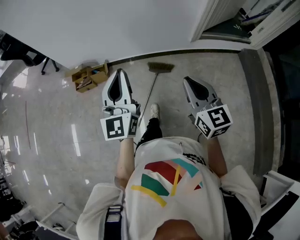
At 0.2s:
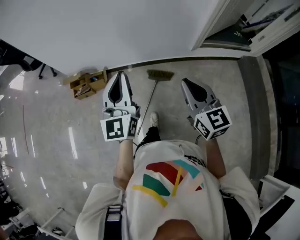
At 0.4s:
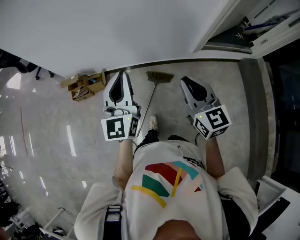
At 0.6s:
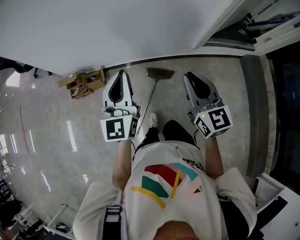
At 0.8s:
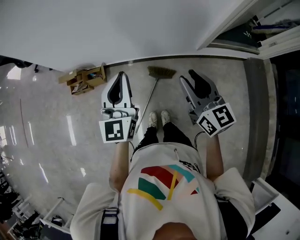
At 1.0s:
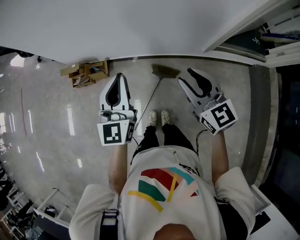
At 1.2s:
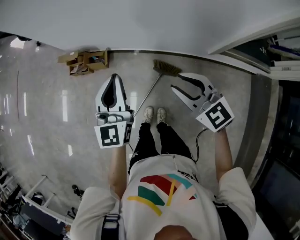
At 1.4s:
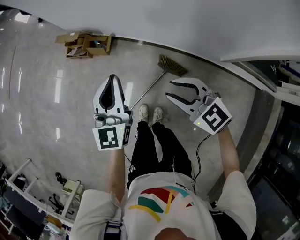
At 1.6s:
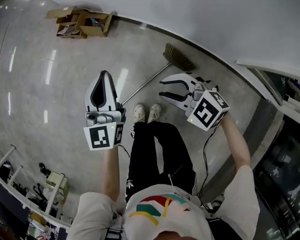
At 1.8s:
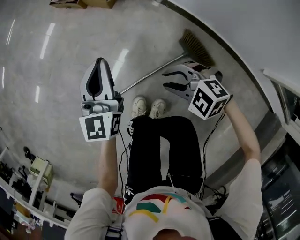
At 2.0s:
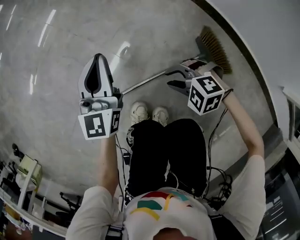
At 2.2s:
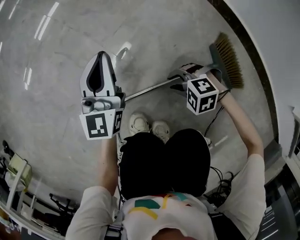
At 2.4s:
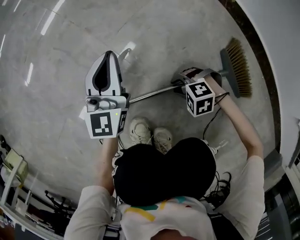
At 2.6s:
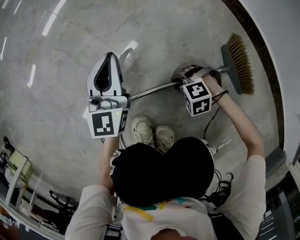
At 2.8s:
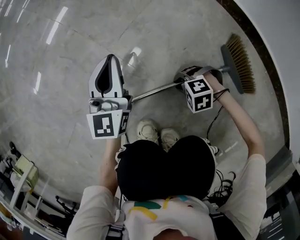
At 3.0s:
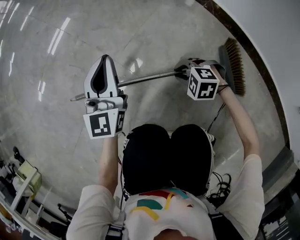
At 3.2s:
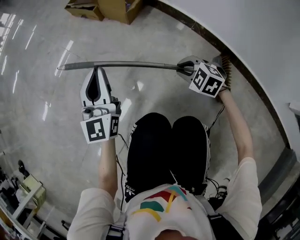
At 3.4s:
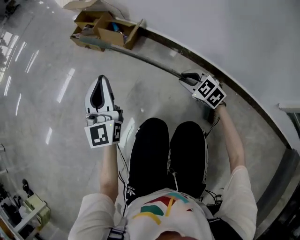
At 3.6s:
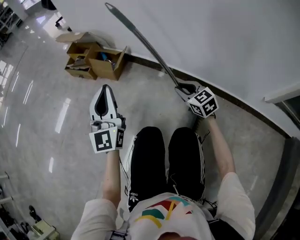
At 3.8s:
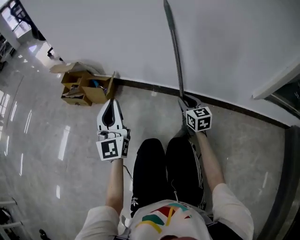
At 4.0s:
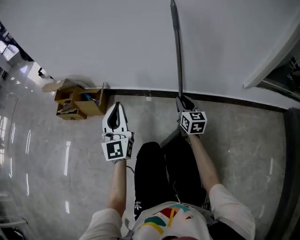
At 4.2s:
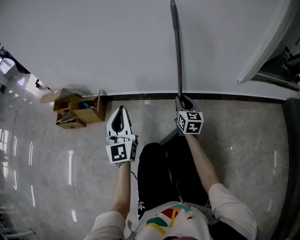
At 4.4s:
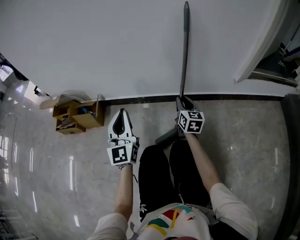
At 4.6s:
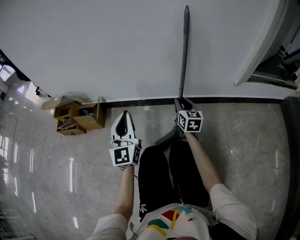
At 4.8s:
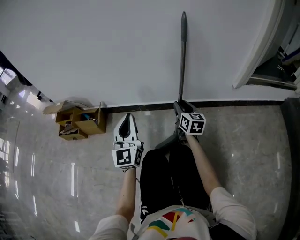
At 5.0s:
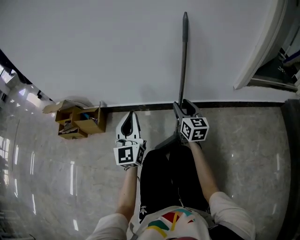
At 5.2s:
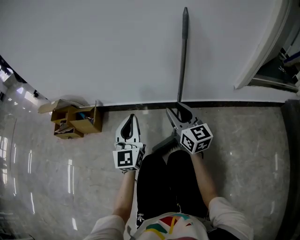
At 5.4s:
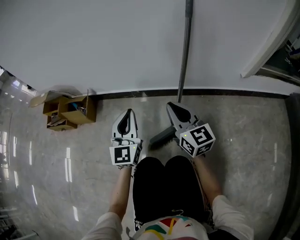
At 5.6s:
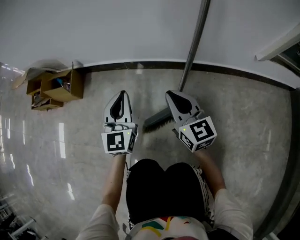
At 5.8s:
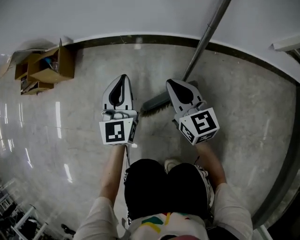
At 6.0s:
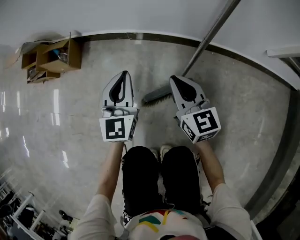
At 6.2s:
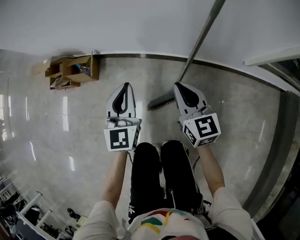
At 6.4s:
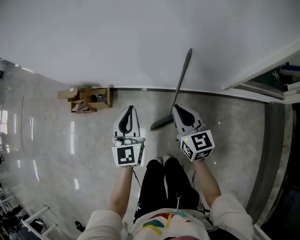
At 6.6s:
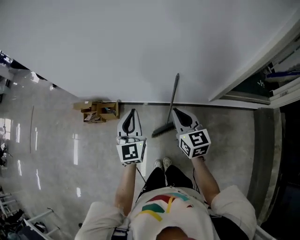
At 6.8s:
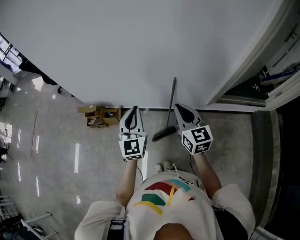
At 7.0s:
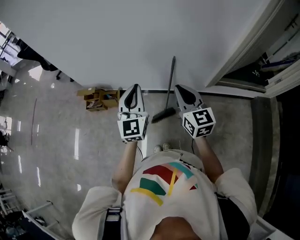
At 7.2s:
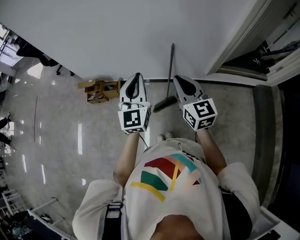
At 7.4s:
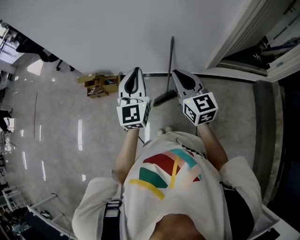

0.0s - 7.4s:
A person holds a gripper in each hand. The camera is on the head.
0.0s - 1.4s: The left gripper shifts by about 35 cm, and swivels approximately 30 degrees; the right gripper changes place by some 40 cm, turns by about 70 degrees, and opens up.
1.4s - 3.0s: The grippers both shift downward by roughly 80 cm. The right gripper angles its fingers downward, by some 30 degrees. Meanwhile the left gripper rotates approximately 20 degrees.
3.0s - 4.4s: The two grippers go some 30 cm upward. The right gripper tips its fingers upward by some 50 degrees, while the left gripper turns by approximately 40 degrees.
4.4s - 6.0s: The left gripper moves downward, some 15 cm. The right gripper moves up and down over about 25 cm, changing direction 2 times, and swivels approximately 30 degrees.
6.0s - 7.4s: Both grippers travel together upward, about 80 cm.

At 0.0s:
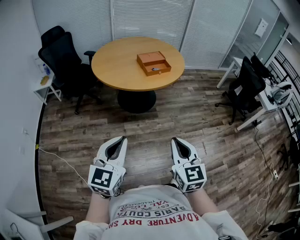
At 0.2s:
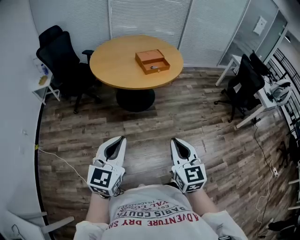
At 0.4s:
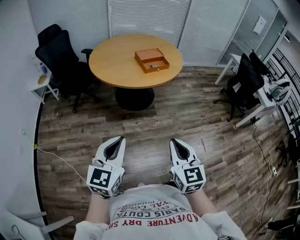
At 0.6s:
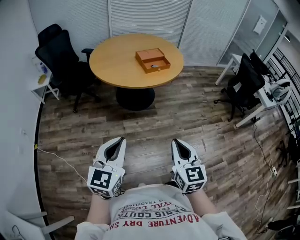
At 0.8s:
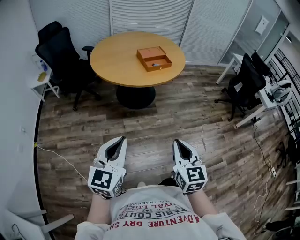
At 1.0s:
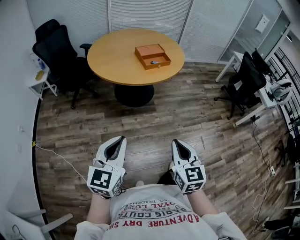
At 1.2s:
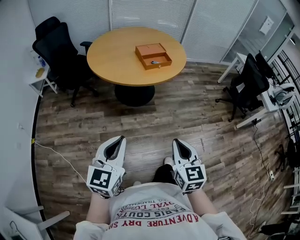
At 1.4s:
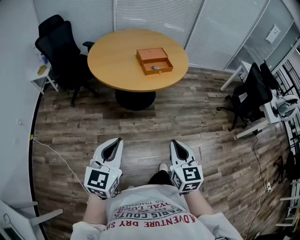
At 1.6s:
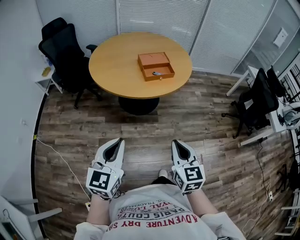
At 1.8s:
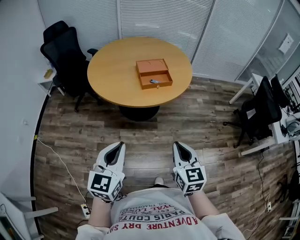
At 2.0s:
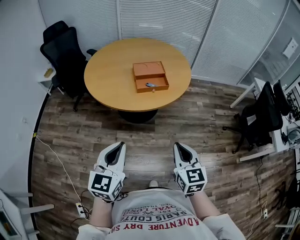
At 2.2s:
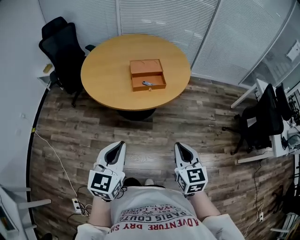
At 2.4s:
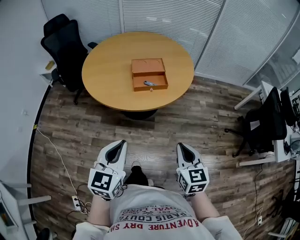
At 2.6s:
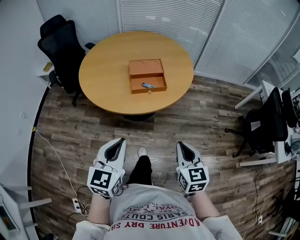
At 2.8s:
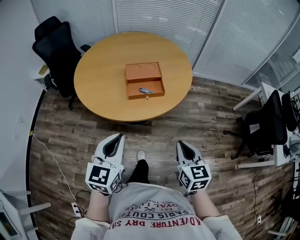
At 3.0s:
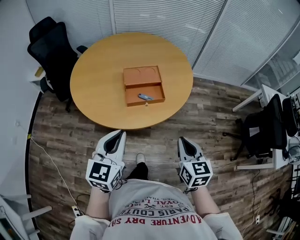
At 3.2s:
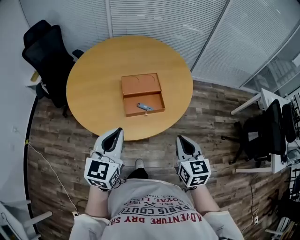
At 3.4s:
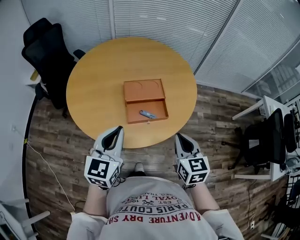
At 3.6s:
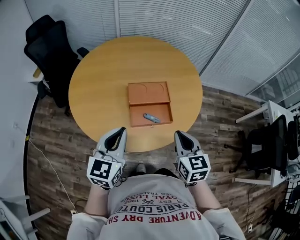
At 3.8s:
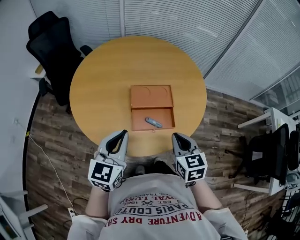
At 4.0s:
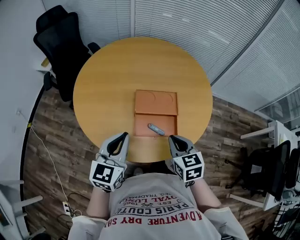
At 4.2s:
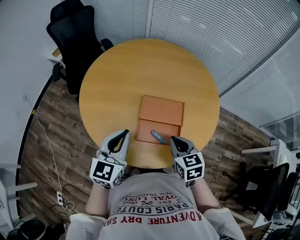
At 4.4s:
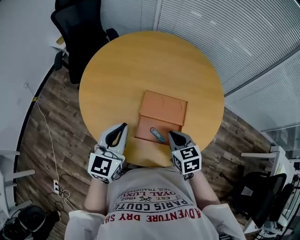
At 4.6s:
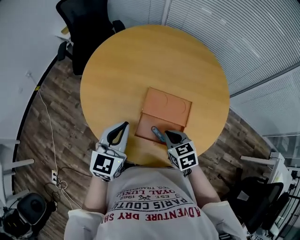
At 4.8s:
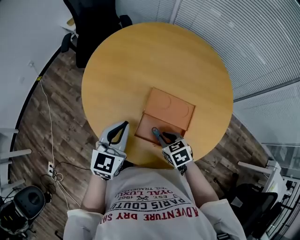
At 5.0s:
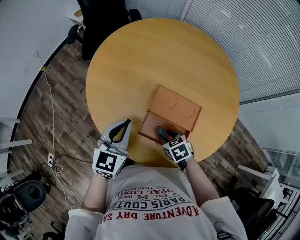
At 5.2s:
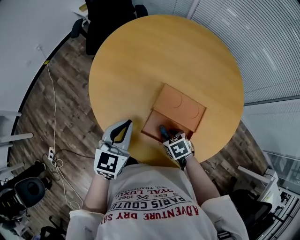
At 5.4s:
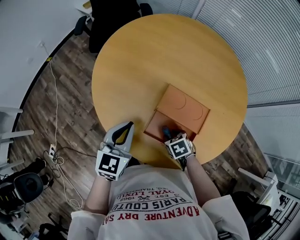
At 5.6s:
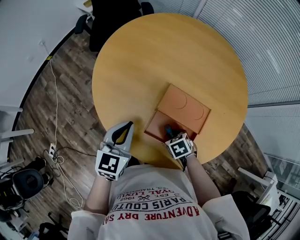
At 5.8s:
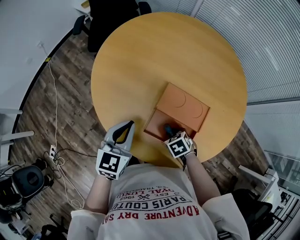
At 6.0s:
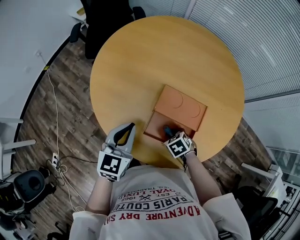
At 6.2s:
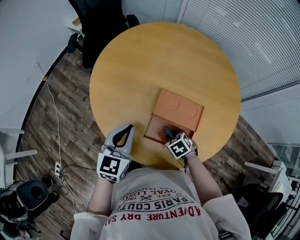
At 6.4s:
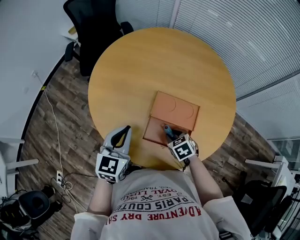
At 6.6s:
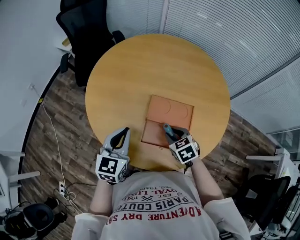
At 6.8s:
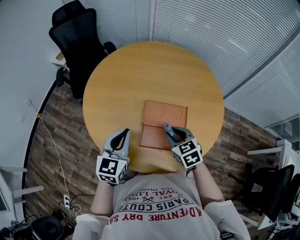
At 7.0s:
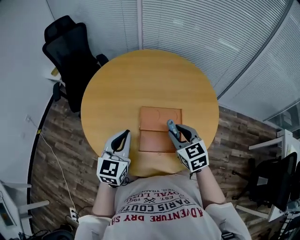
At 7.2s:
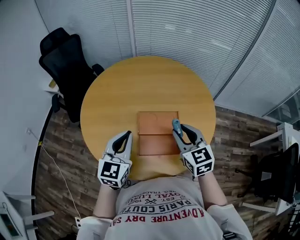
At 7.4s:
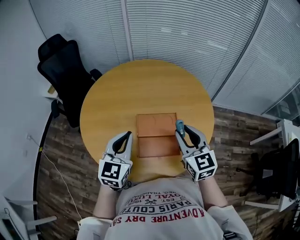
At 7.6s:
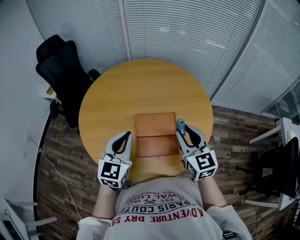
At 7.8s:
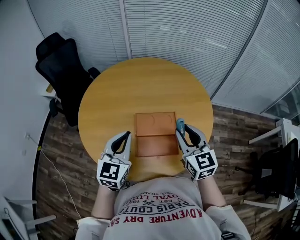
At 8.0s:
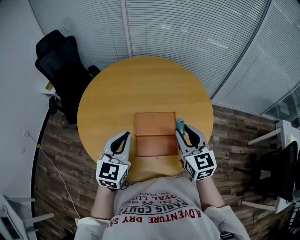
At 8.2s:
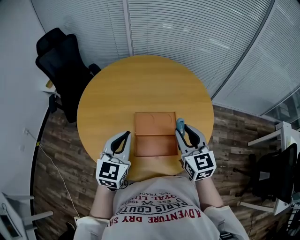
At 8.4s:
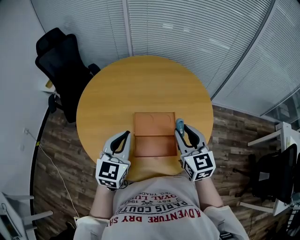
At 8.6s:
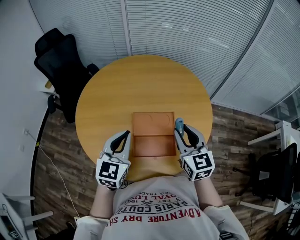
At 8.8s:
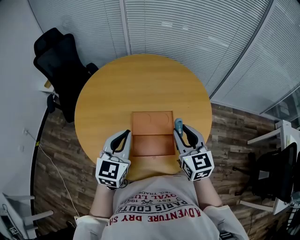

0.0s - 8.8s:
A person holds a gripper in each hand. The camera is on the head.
0.0s - 1.4s: The grippers both shift forward by approximately 10 cm.
1.4s - 3.0s: The two grippers go about 40 cm forward and to the right.
3.0s - 4.4s: The left gripper shifts by approximately 25 cm; the right gripper shifts by about 35 cm, and swivels roughly 40 degrees.
4.4s - 5.8s: The right gripper goes roughly 15 cm downward, angles its fingers downward, by some 30 degrees, and opens. Meanwhile the left gripper travels downward by some 5 cm.
5.8s - 7.4s: The right gripper shifts roughly 30 cm upward, and tilts its fingers some 60 degrees upward. The left gripper is displaced upward by approximately 10 cm, and rotates some 30 degrees.
7.4s - 8.8s: The grippers stay close to where they were, moving slightly.

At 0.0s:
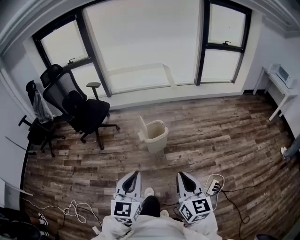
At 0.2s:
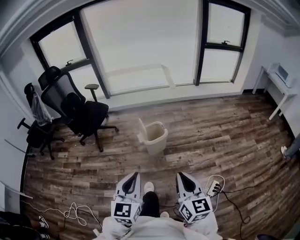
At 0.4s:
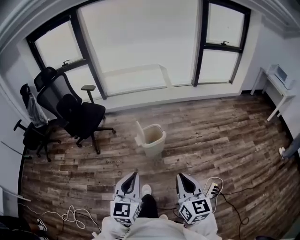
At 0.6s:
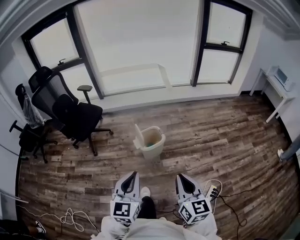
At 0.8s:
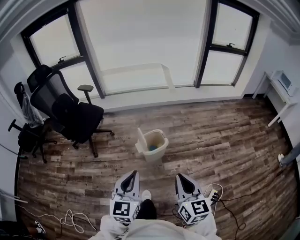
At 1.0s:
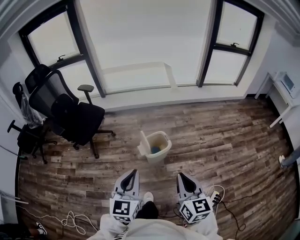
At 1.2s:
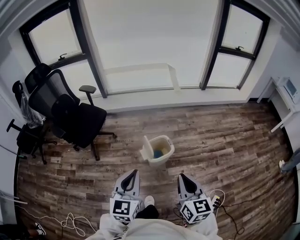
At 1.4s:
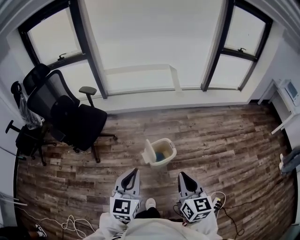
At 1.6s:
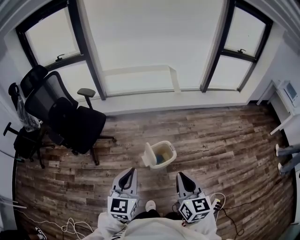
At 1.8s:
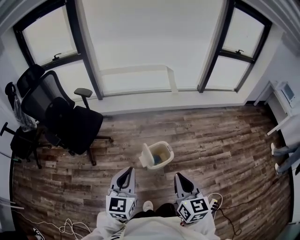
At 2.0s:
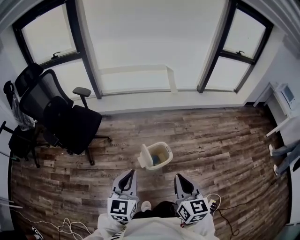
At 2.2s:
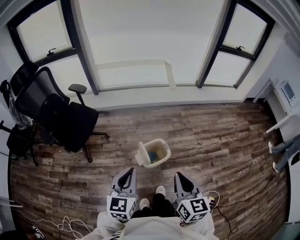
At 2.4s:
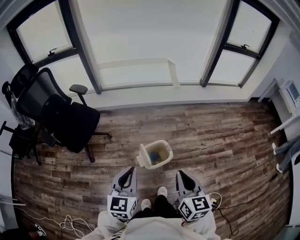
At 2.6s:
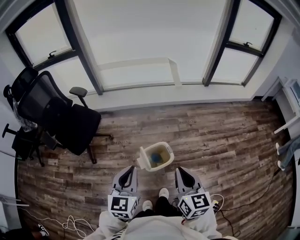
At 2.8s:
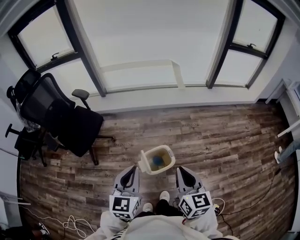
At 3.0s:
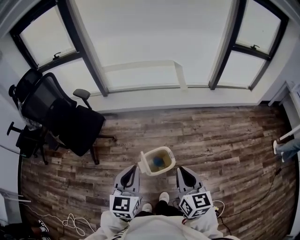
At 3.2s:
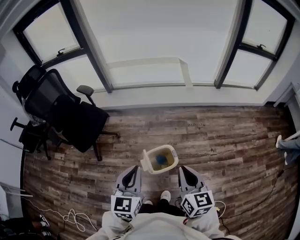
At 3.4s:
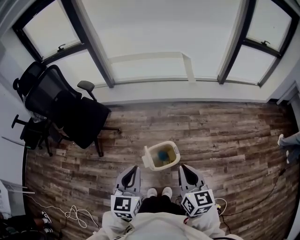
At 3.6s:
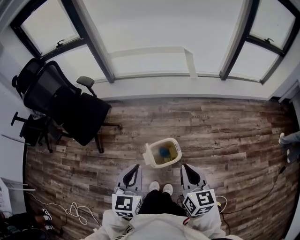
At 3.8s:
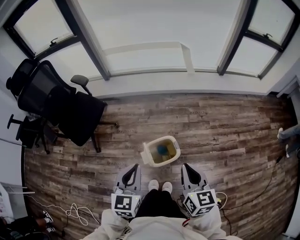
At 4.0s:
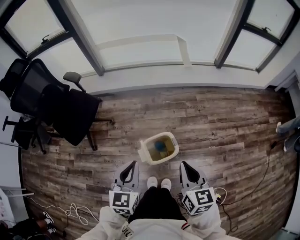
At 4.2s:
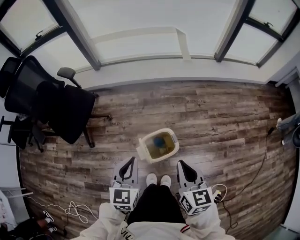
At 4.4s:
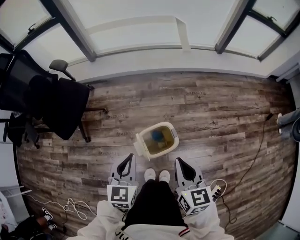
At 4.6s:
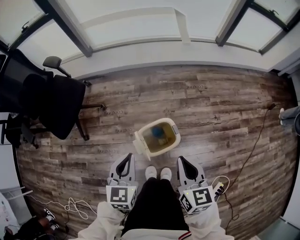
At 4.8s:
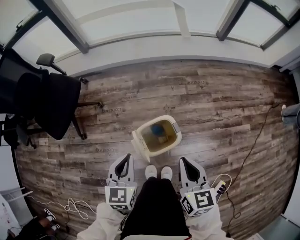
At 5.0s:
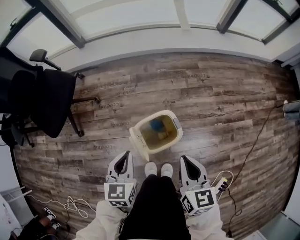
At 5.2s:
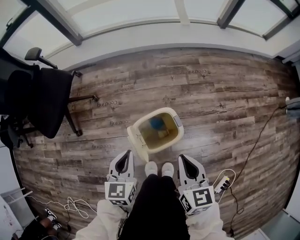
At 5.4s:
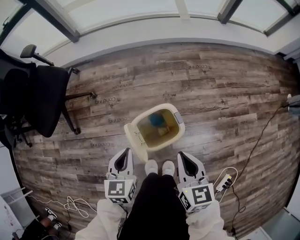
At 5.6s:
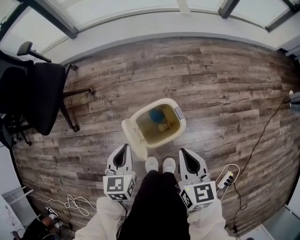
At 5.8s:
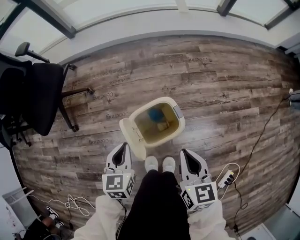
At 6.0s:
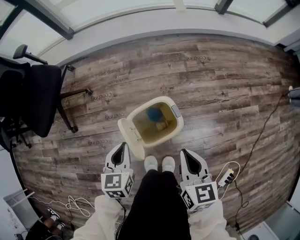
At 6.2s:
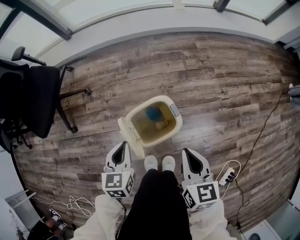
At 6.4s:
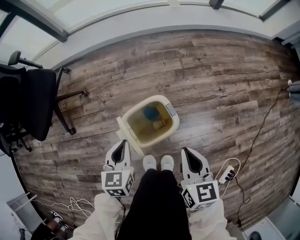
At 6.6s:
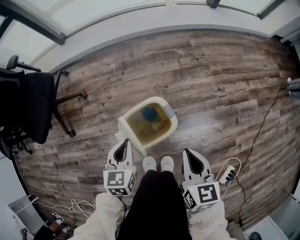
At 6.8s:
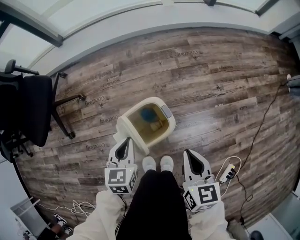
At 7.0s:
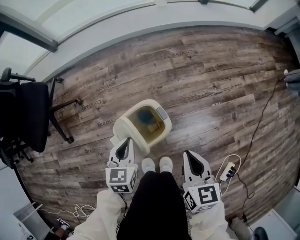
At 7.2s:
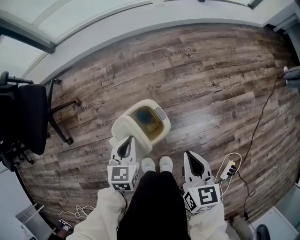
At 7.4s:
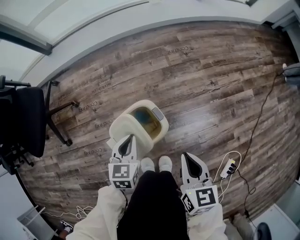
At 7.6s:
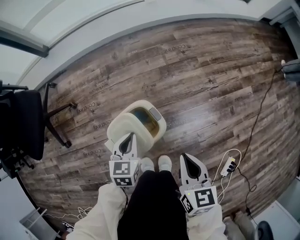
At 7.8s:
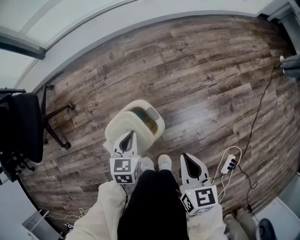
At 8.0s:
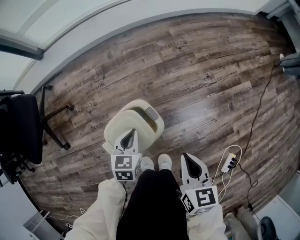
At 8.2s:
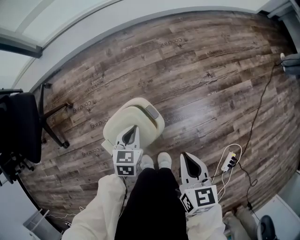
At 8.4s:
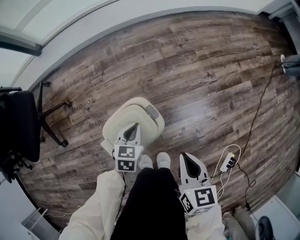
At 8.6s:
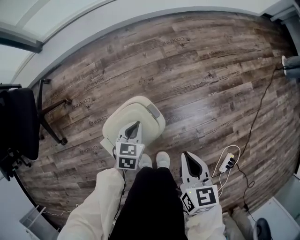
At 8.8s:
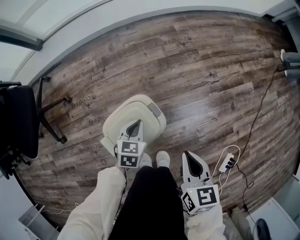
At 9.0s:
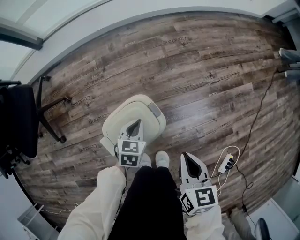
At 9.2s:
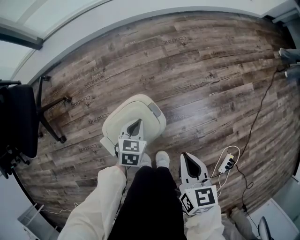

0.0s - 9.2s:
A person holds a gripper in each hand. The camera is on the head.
0.0s - 1.6s: Both grippers move forward, some 40 cm.
1.6s - 3.0s: Both grippers move forward and to the right, roughly 20 cm.
3.0s - 4.6s: The right gripper heads downward and forward, covering roughly 25 cm. The left gripper travels downward by some 25 cm.
4.6s - 6.2s: Both grippers travel together downward, roughly 20 cm.
6.2s - 7.6s: The right gripper travels to the right by about 5 cm. The left gripper moves to the right, downward and forward, approximately 15 cm.
7.6s - 9.2s: The left gripper goes about 10 cm downward.
